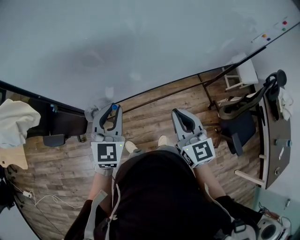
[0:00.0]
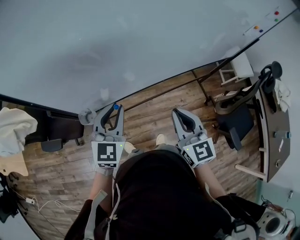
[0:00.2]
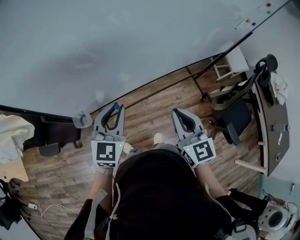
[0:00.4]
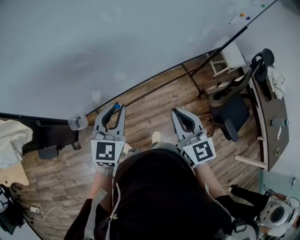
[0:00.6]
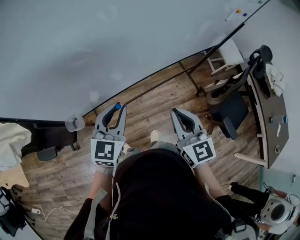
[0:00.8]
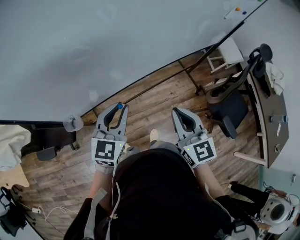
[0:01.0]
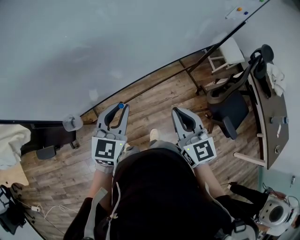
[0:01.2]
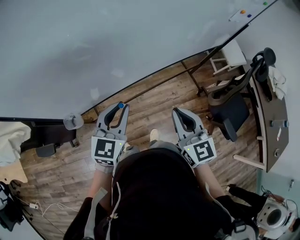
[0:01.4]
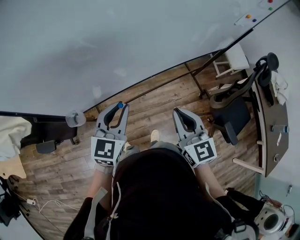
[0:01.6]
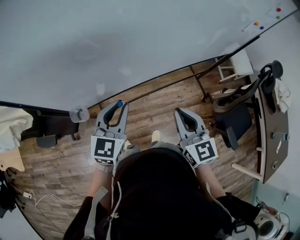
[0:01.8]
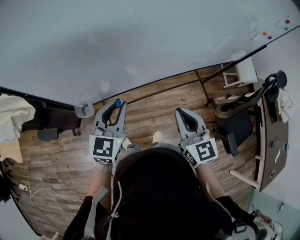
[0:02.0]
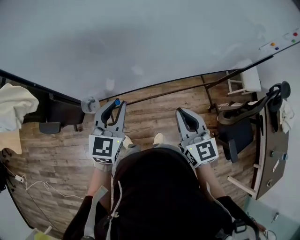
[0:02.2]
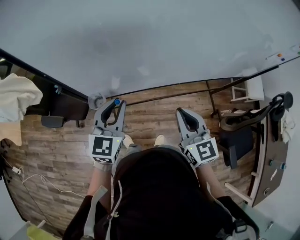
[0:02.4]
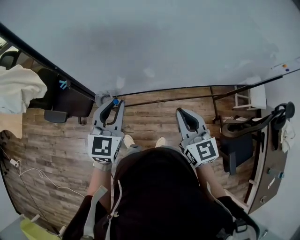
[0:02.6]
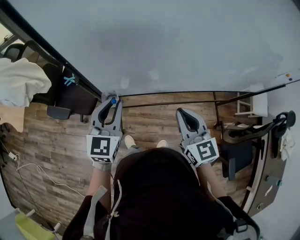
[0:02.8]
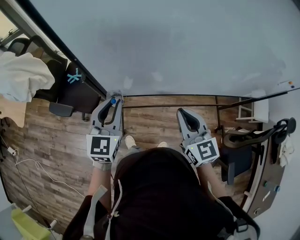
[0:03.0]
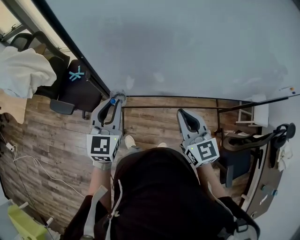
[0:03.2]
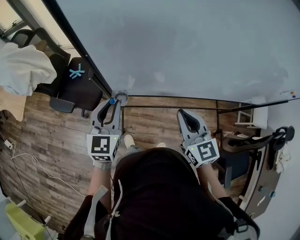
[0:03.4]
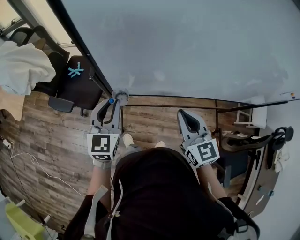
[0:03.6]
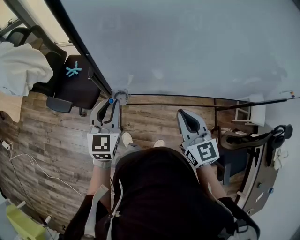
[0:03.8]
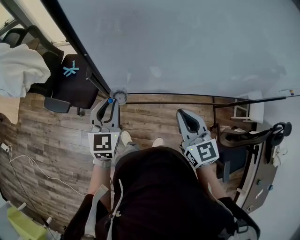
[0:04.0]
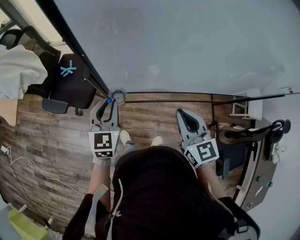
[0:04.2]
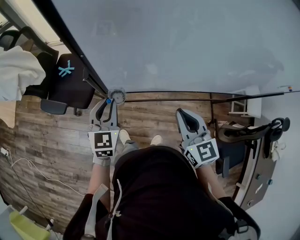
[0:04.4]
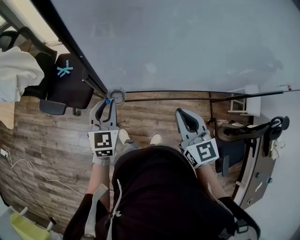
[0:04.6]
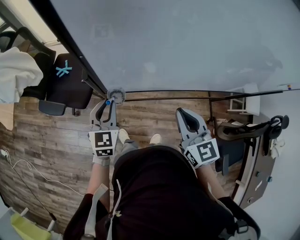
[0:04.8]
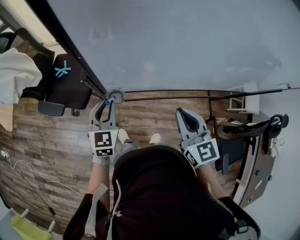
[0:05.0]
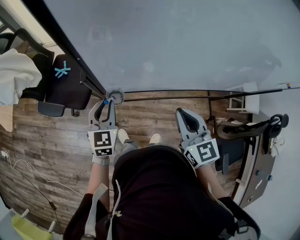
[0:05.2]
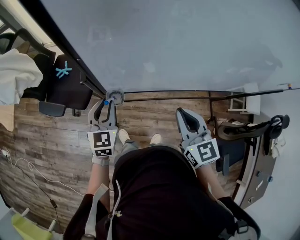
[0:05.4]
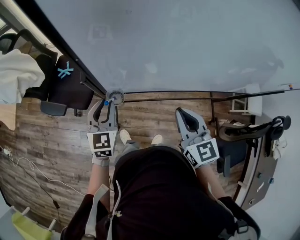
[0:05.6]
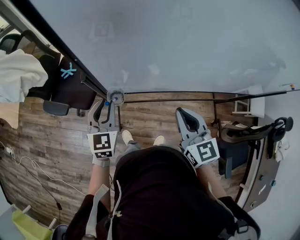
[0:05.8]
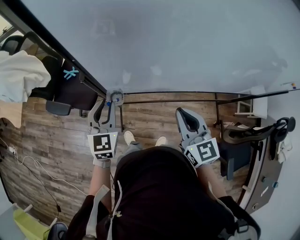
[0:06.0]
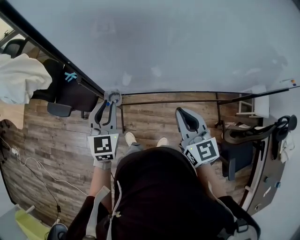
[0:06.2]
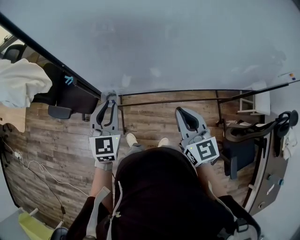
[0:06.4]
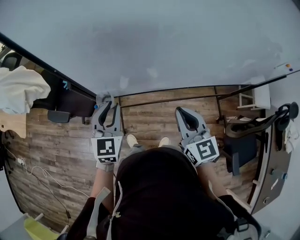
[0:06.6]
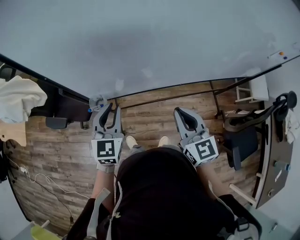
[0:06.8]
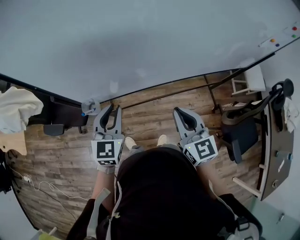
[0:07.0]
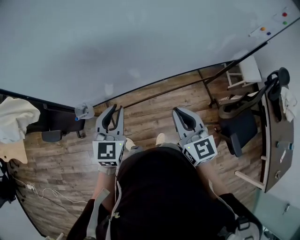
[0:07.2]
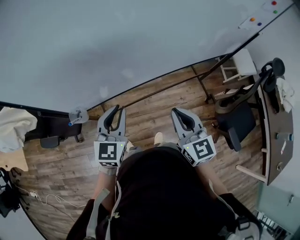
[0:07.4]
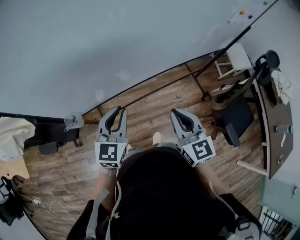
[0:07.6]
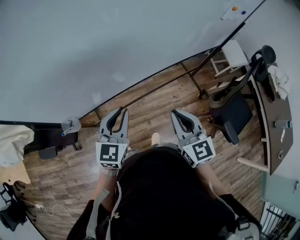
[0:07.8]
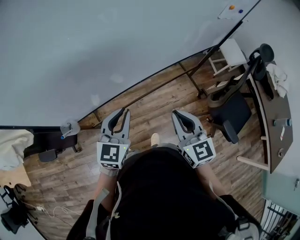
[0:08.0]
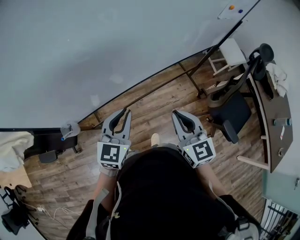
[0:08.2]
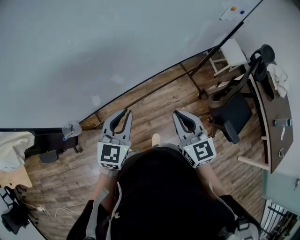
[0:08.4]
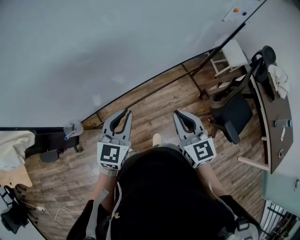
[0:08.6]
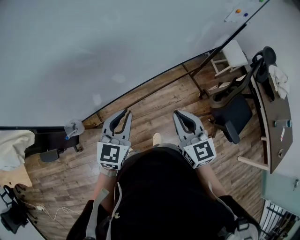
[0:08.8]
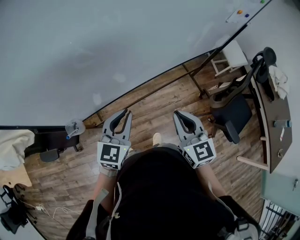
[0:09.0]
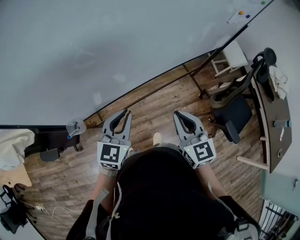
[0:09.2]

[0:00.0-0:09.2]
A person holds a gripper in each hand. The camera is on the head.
0:00.0 to 0:01.6: The two grippers go approximately 10 cm to the right.
0:01.6 to 0:03.0: The right gripper changes place by some 20 cm, and turns by roughly 20 degrees. The left gripper ends up roughly 20 cm from where it was, and rotates about 30 degrees.
0:03.0 to 0:04.6: The left gripper goes roughly 10 cm downward and to the left.
0:04.6 to 0:06.2: The left gripper travels upward by approximately 5 cm.
0:06.2 to 0:07.6: The left gripper shifts by approximately 30 cm, and turns by some 30 degrees, while the right gripper changes place by approximately 20 cm, and turns by some 20 degrees.
0:07.6 to 0:09.2: The grippers make only small movements.

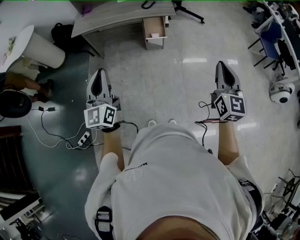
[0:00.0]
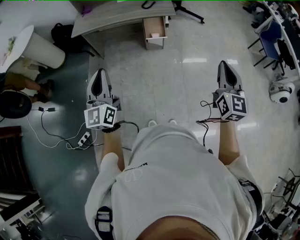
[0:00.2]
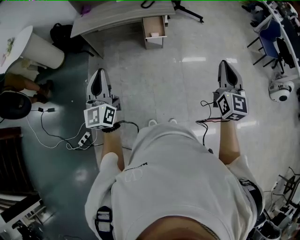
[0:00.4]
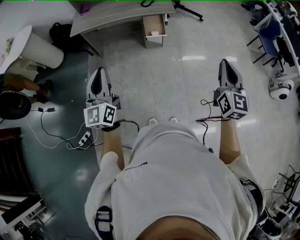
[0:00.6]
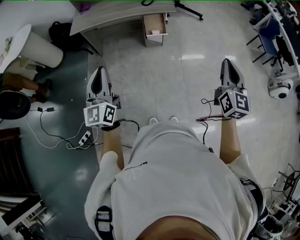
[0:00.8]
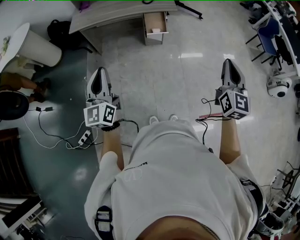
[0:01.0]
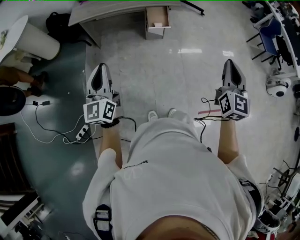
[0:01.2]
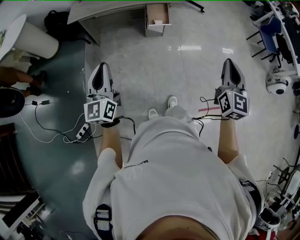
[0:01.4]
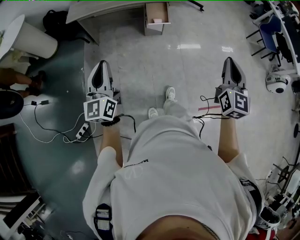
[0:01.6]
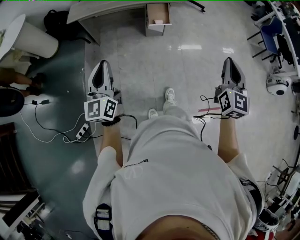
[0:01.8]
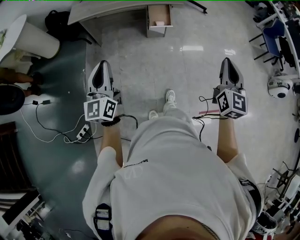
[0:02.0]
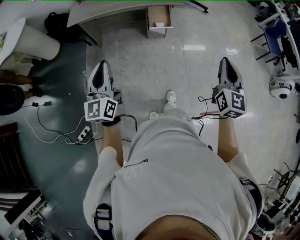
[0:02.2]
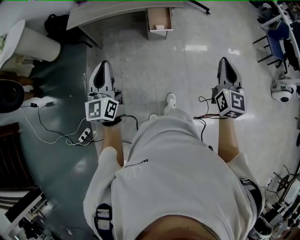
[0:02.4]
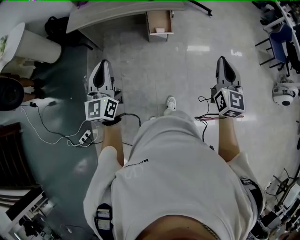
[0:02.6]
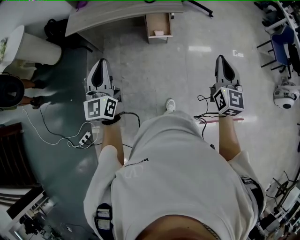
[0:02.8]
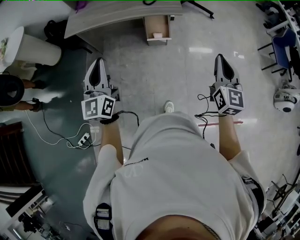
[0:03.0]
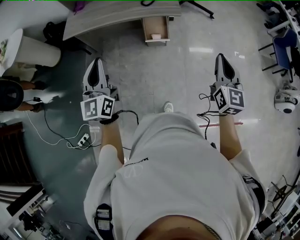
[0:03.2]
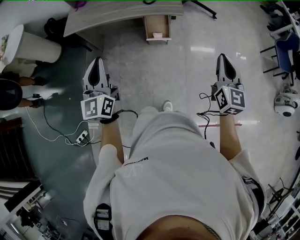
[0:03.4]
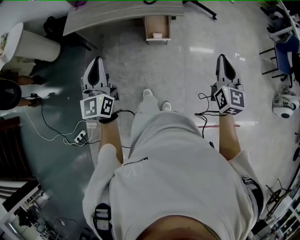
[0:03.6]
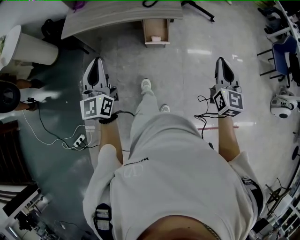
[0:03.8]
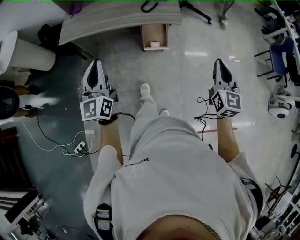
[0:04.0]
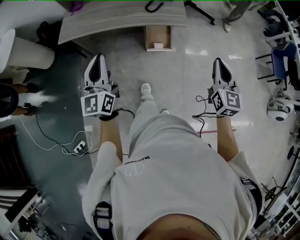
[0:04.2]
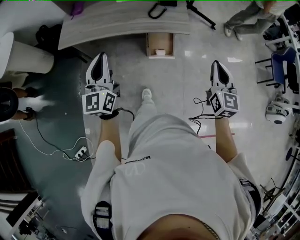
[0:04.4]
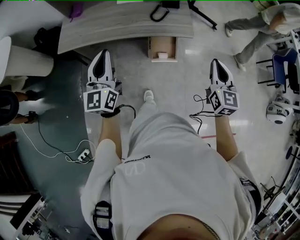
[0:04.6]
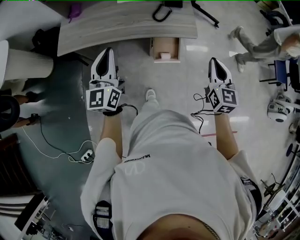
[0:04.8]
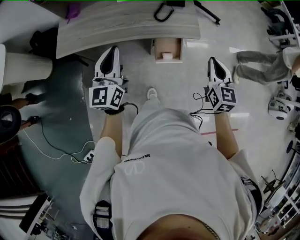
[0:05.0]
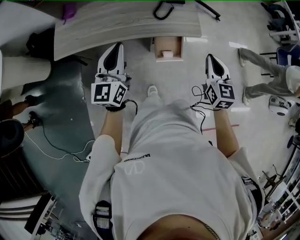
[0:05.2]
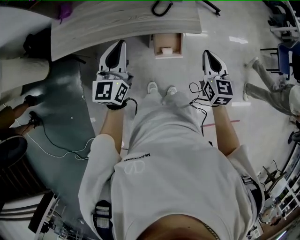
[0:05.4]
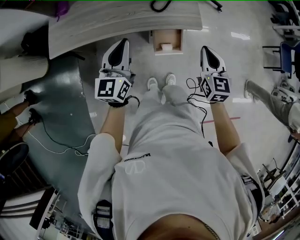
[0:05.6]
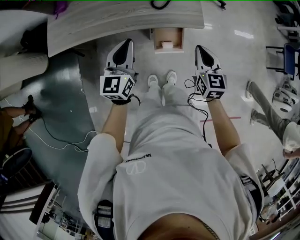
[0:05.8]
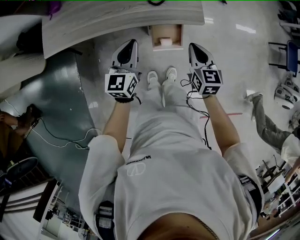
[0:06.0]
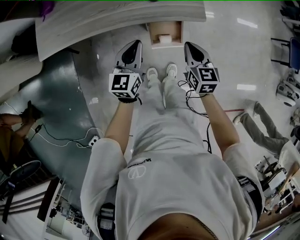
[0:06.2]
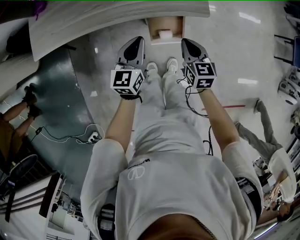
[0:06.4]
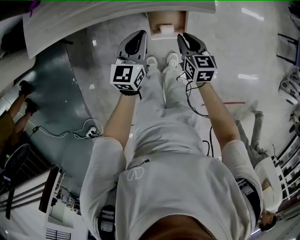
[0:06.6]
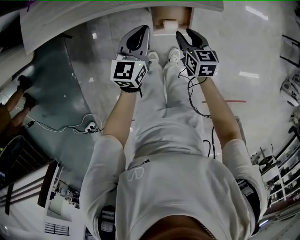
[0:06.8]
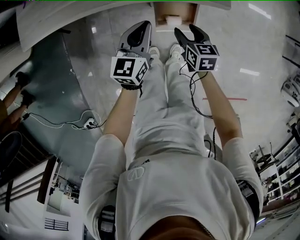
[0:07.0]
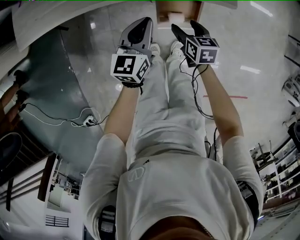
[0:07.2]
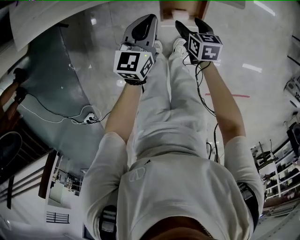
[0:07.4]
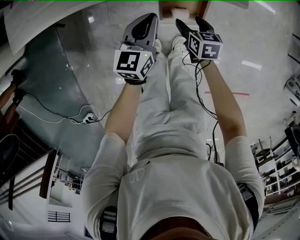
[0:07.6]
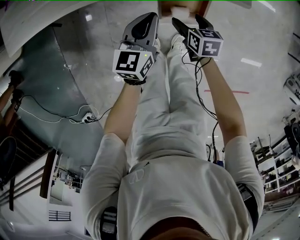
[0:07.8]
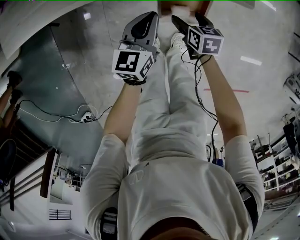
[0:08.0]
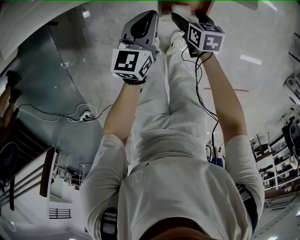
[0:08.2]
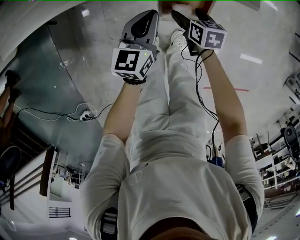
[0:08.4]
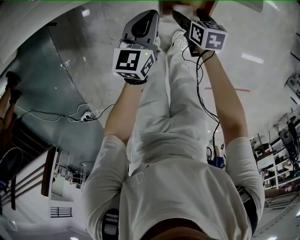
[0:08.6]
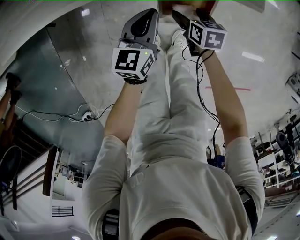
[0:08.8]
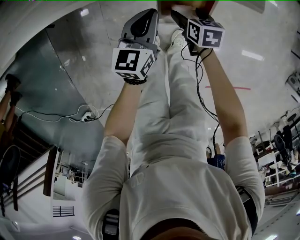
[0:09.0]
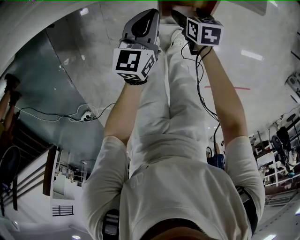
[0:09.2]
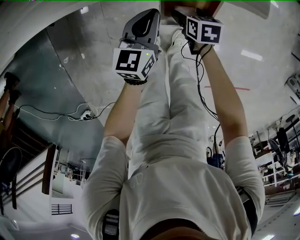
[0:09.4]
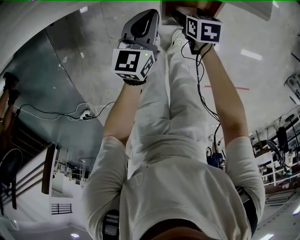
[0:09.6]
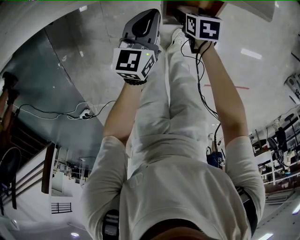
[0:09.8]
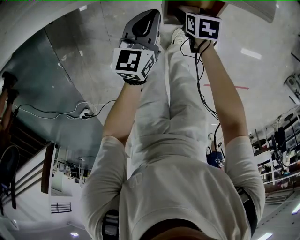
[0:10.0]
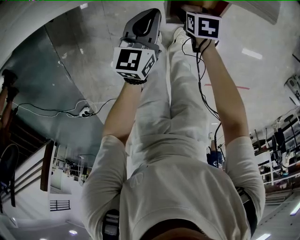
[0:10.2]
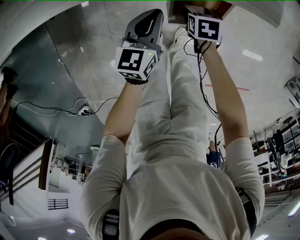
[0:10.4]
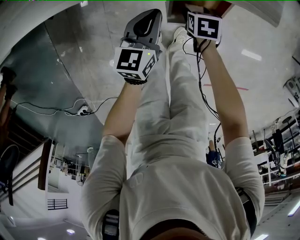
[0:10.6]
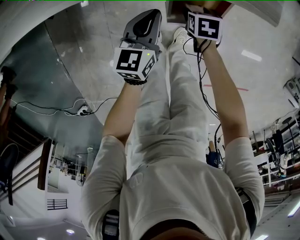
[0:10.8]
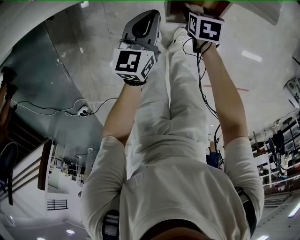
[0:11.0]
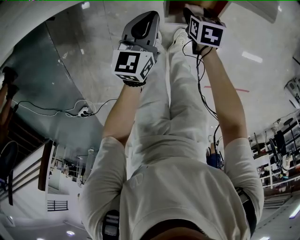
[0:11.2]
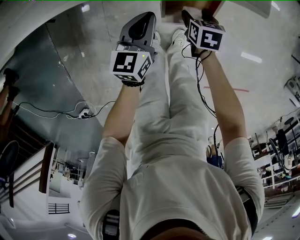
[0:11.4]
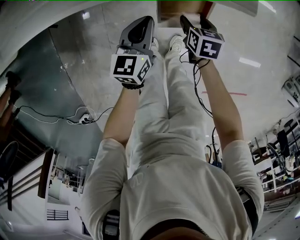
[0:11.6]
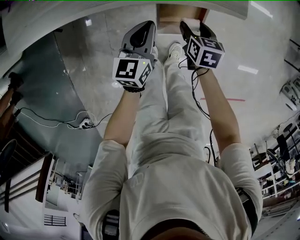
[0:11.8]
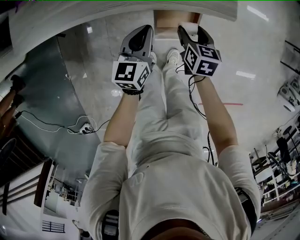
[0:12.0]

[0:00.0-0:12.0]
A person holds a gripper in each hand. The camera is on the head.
0:00.0 to 0:01.6: The left gripper moves to the left and downward, about 10 cm. Meanwhile the right gripper travels to the left by approximately 5 cm.
0:01.6 to 0:03.0: The left gripper travels forward and to the right by about 20 cm. Meanwhile the right gripper is displaced forward by roughly 20 cm.
0:03.0 to 0:04.4: Both grippers move forward, about 20 cm.
0:04.4 to 0:06.0: The right gripper shifts some 30 cm downward, forward and to the left, and swivels roughly 20 degrees, while the left gripper goes some 30 cm forward, downward and to the right, and turns by approximately 20 degrees.
0:06.0 to 0:07.6: Both grippers move downward, approximately 25 cm. The right gripper changes its angle by about 30 degrees, and opens.
0:07.6 to 0:09.0: The two grippers go some 5 cm downward.
0:09.0 to 0:10.4: There are only small adjustments of the grippers.
0:10.4 to 0:12.0: The right gripper heads upward, covering some 20 cm, and turns by some 30 degrees; the left gripper is displaced upward by some 10 cm.

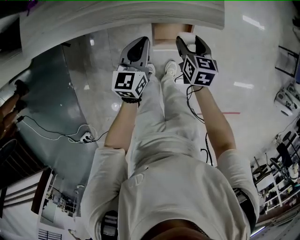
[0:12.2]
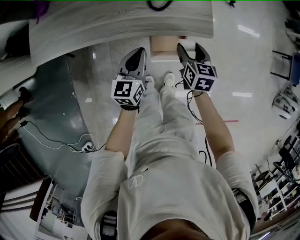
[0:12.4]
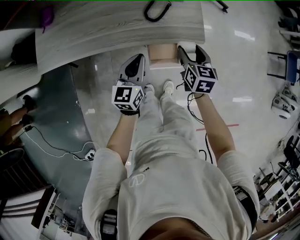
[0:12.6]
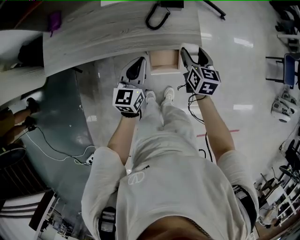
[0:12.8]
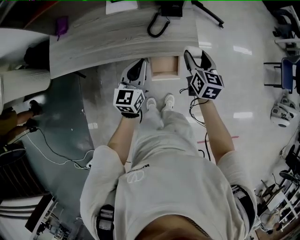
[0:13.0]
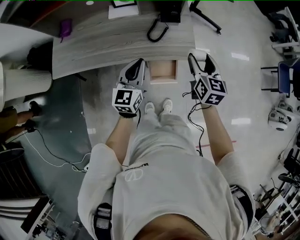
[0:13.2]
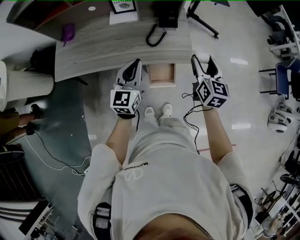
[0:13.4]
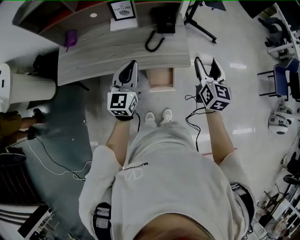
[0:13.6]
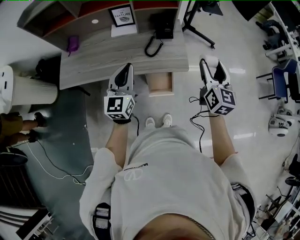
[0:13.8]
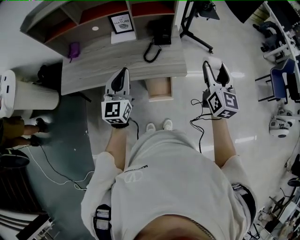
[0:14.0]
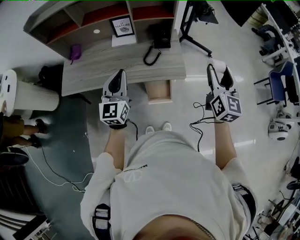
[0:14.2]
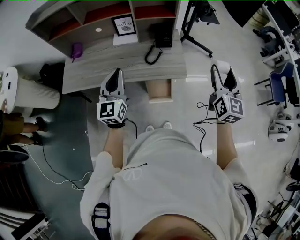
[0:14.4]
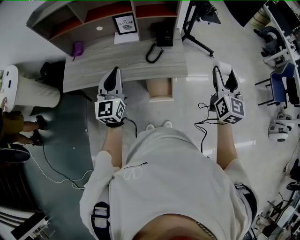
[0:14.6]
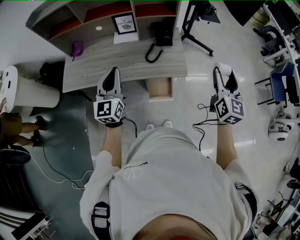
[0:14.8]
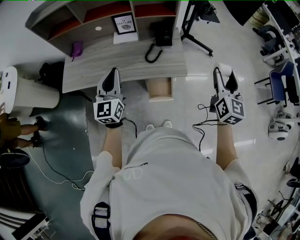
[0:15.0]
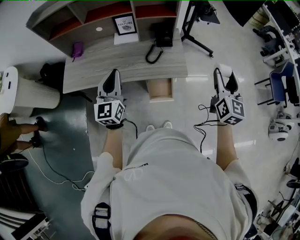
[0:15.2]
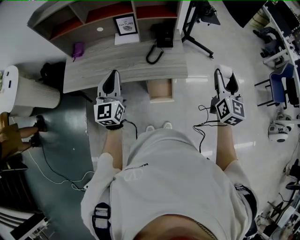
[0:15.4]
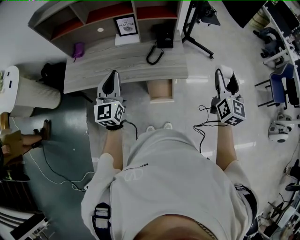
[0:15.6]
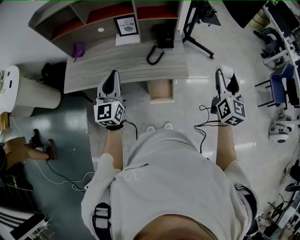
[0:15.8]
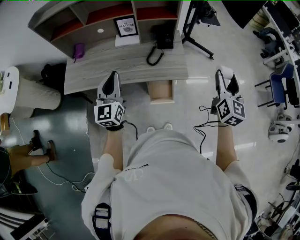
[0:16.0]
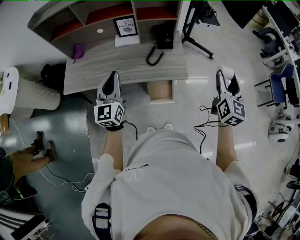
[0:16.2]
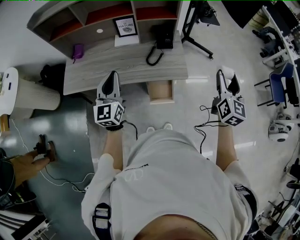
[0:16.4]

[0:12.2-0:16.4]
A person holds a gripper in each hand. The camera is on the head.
0:12.2 to 0:13.6: Both grippers travel together upward, about 30 cm. The right gripper tilts its fingers about 30 degrees upward. Meanwhile the left gripper swivels approximately 20 degrees.
0:13.6 to 0:15.0: The left gripper goes some 10 cm upward and to the left. Meanwhile the right gripper shifts some 15 cm upward, to the right and backward.
0:15.0 to 0:16.4: Neither gripper changes place.
